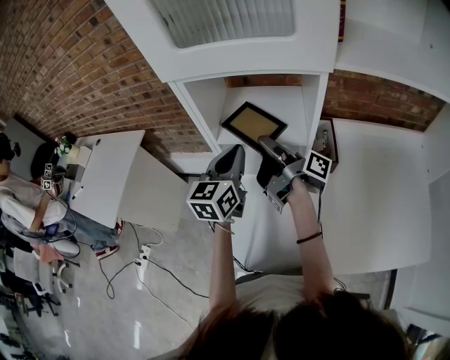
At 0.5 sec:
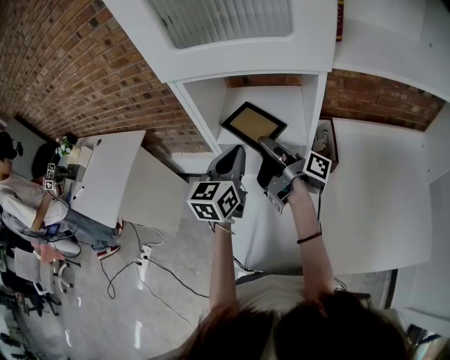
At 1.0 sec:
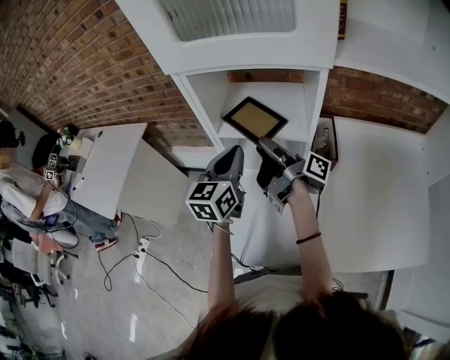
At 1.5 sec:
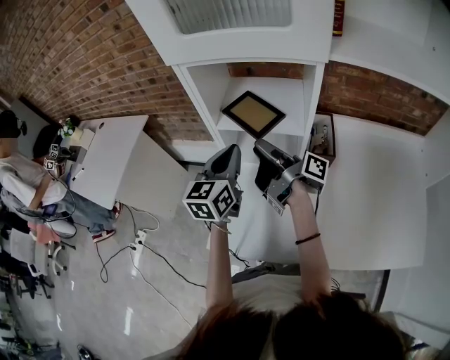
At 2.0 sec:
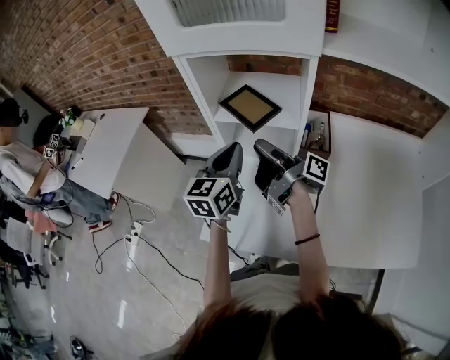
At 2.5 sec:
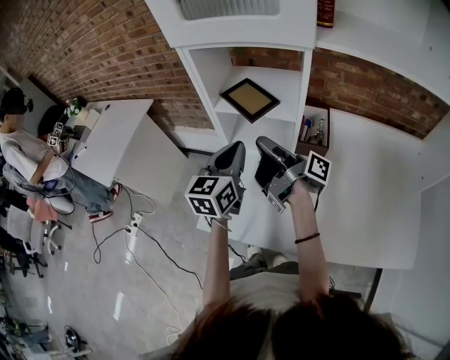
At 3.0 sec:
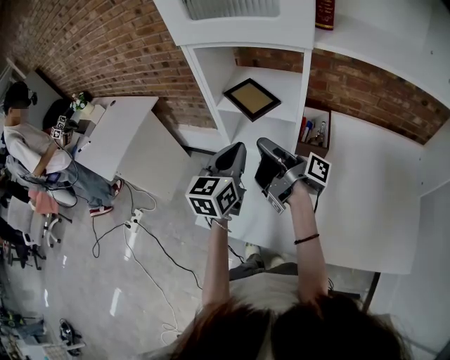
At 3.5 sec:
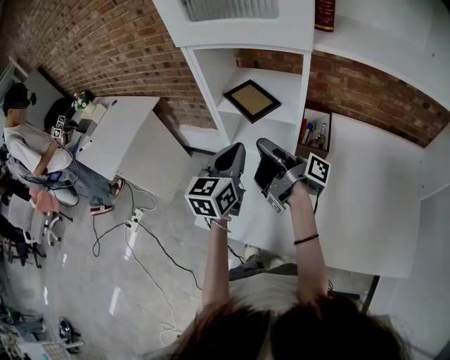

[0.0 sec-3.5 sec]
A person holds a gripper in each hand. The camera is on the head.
0.0 sec to 2.0 sec: The left gripper moves approximately 5 cm.

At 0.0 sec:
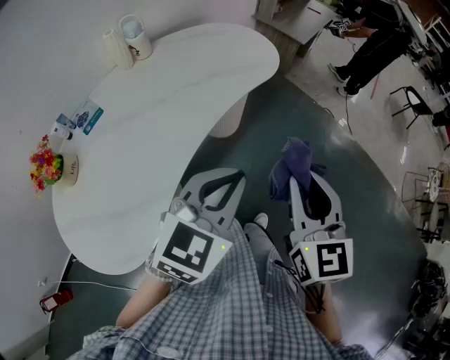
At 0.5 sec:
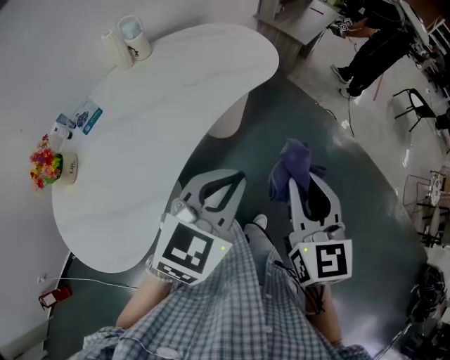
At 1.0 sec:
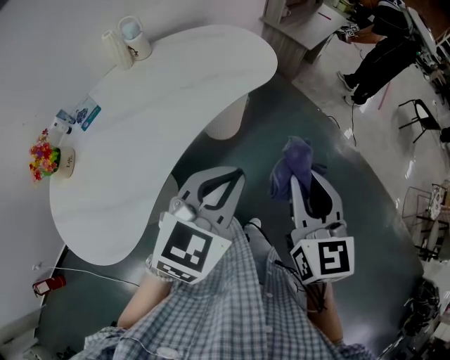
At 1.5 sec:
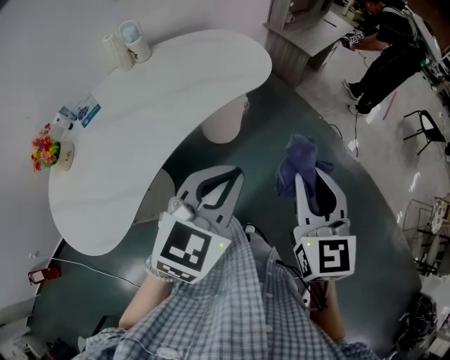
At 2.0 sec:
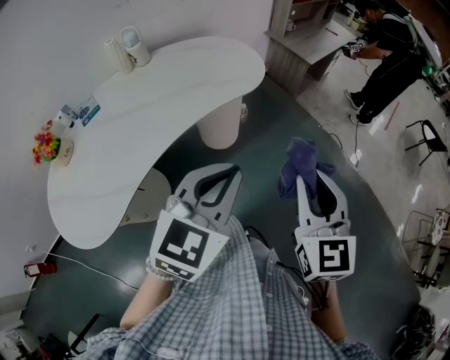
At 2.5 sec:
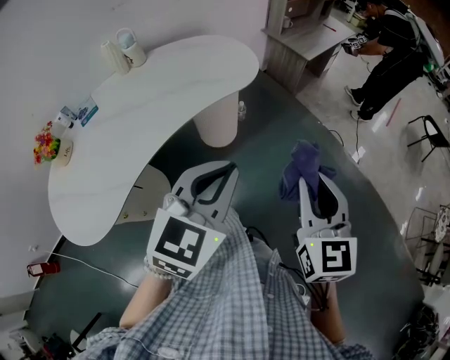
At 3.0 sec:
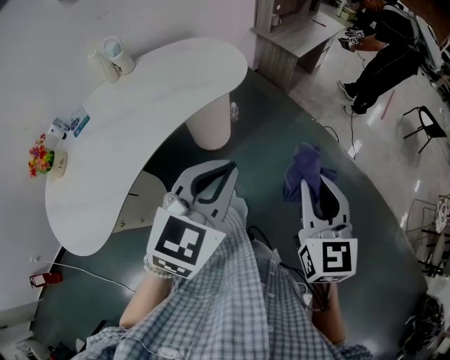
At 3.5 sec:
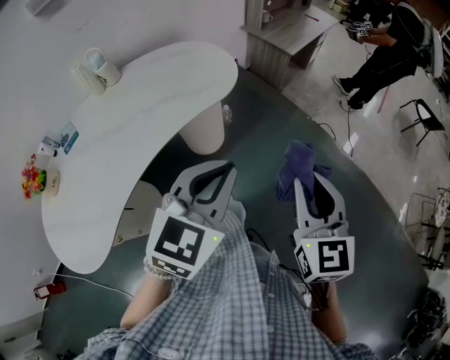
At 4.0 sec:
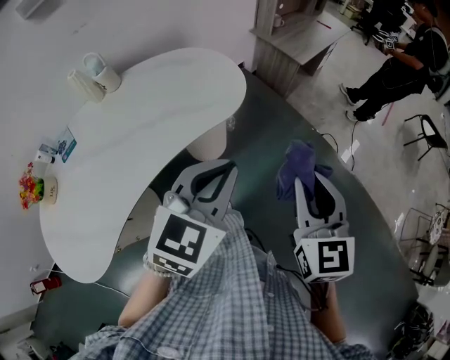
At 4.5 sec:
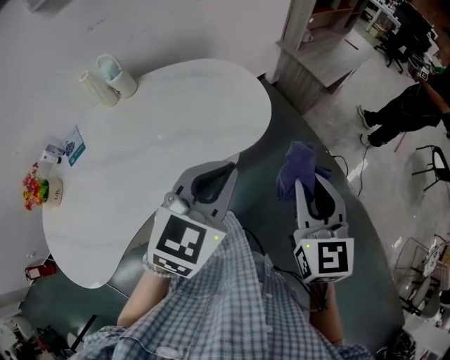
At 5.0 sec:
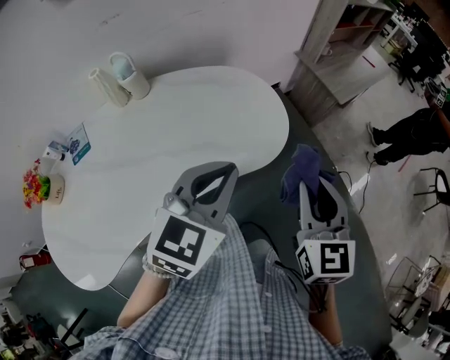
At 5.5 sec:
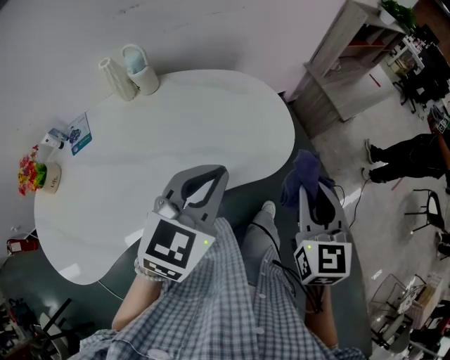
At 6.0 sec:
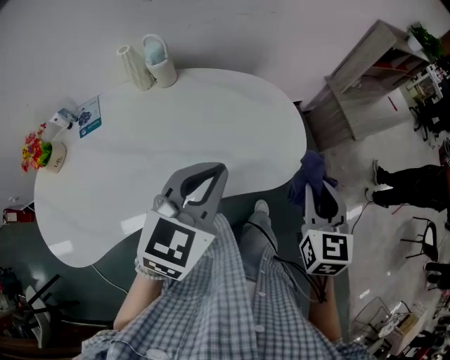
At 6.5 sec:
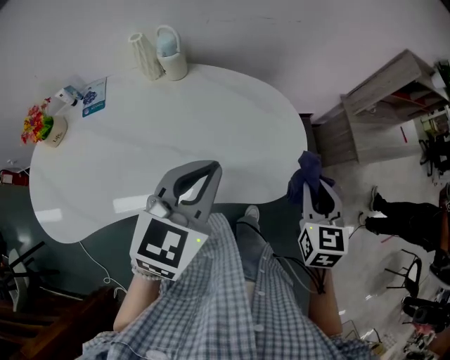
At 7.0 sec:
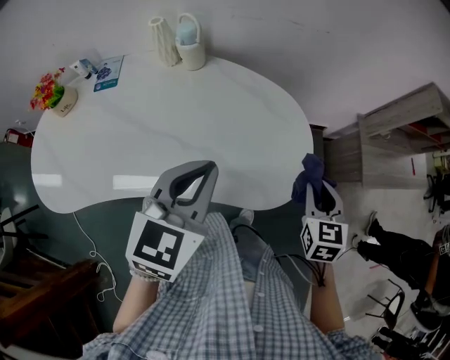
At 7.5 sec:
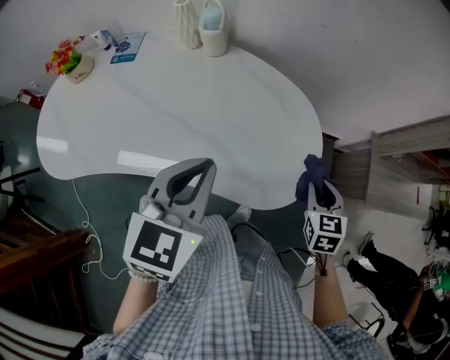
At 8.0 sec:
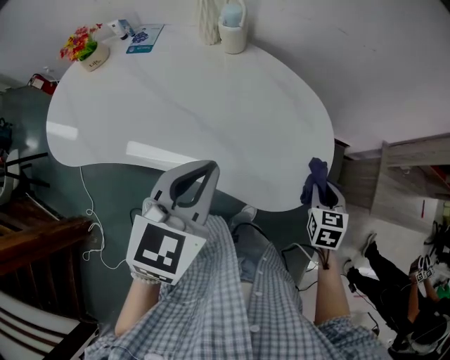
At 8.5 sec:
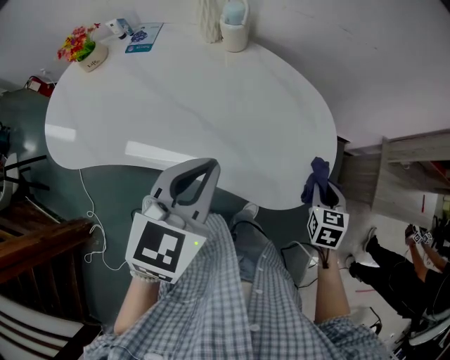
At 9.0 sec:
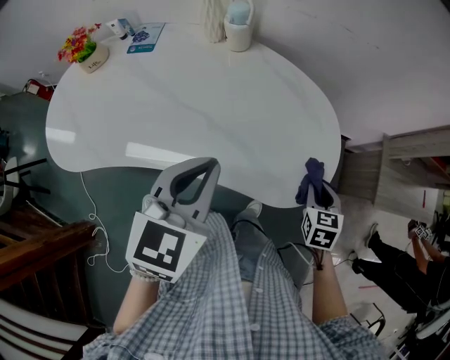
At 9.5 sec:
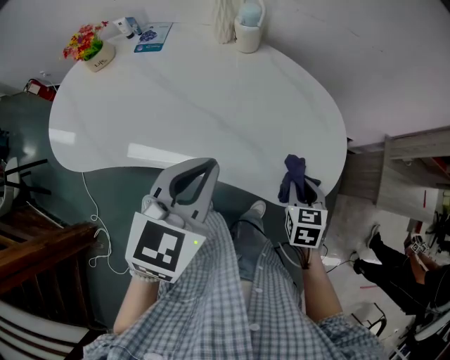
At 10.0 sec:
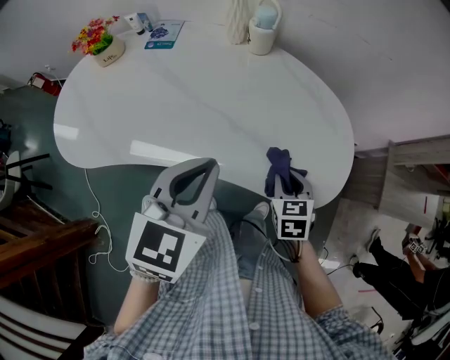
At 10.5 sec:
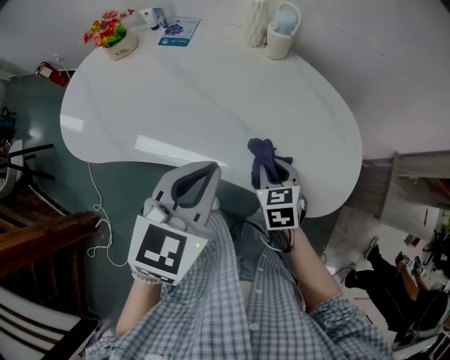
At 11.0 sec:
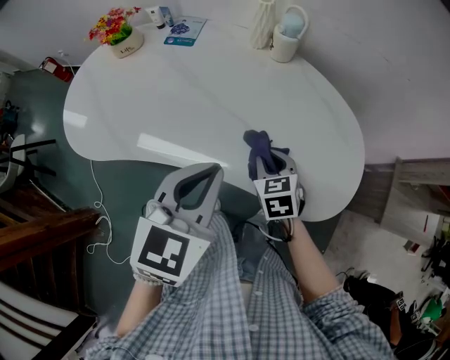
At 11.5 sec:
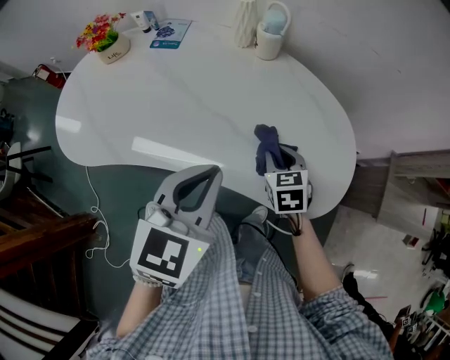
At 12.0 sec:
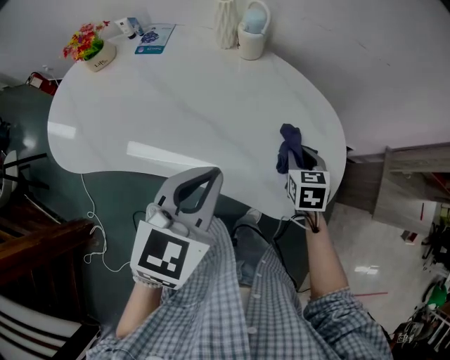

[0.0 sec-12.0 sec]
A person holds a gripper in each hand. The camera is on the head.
0.0 sec to 2.0 sec: The right gripper heads to the right and forward, covering some 20 cm. Meanwhile the left gripper heads to the right, covering about 15 cm.
2.0 sec to 4.0 sec: The grippers both shift forward by about 15 cm.
4.0 sec to 6.0 sec: The two grippers go roughly 25 cm forward and to the left. The left gripper changes its angle by some 30 degrees.
6.0 sec to 8.0 sec: The left gripper rotates about 40 degrees; the right gripper moves roughly 25 cm, and turns by some 40 degrees.
8.0 sec to 10.0 sec: The right gripper travels to the left by about 20 cm; the left gripper shifts about 10 cm to the left.
10.0 sec to 12.0 sec: The right gripper heads forward, covering about 10 cm, and travels to the left and back again, approximately 10 cm each way.

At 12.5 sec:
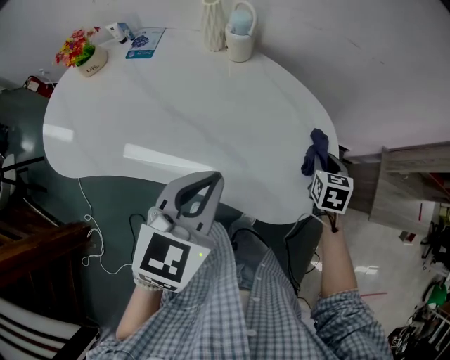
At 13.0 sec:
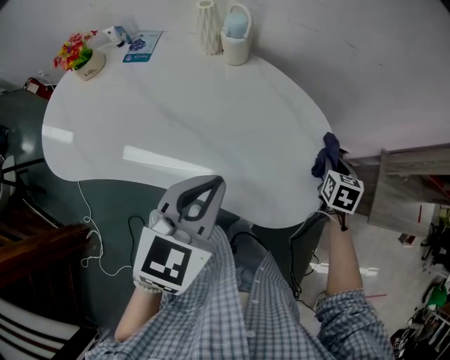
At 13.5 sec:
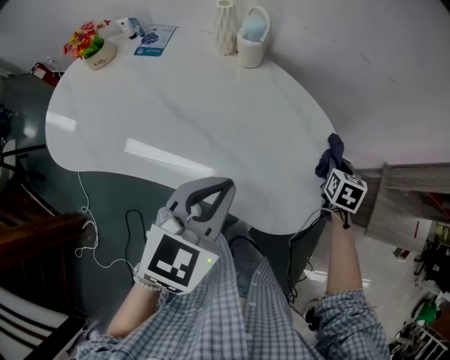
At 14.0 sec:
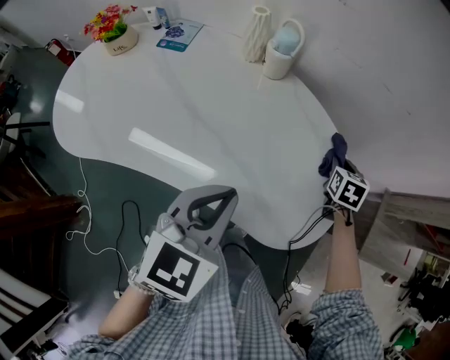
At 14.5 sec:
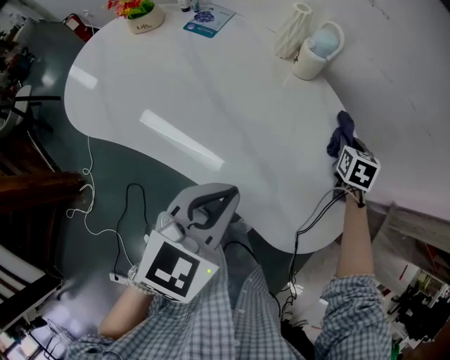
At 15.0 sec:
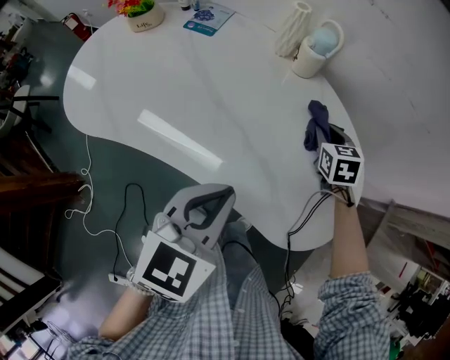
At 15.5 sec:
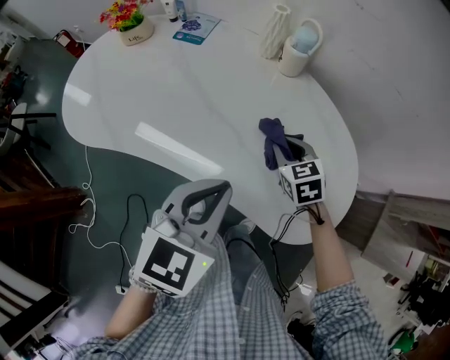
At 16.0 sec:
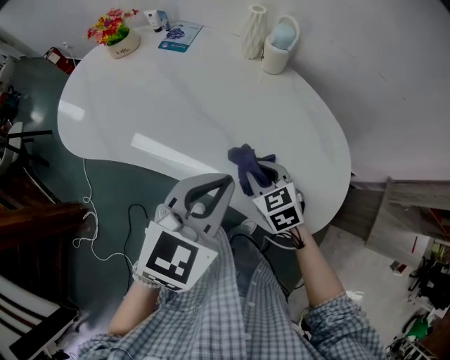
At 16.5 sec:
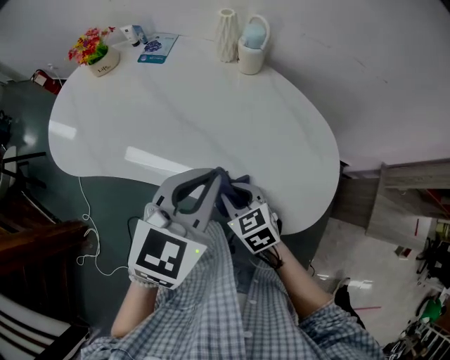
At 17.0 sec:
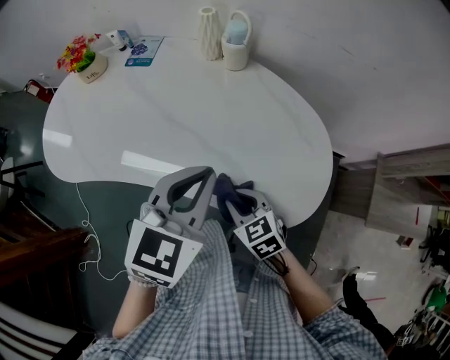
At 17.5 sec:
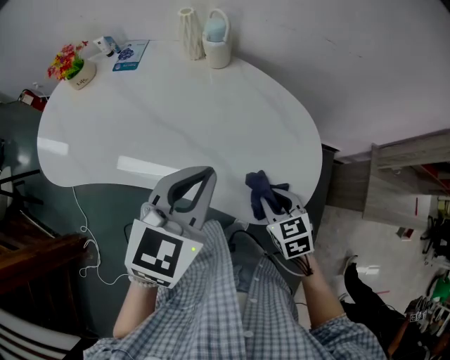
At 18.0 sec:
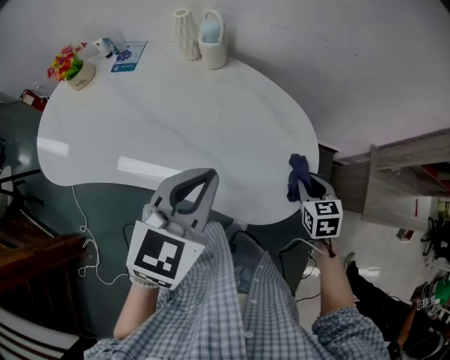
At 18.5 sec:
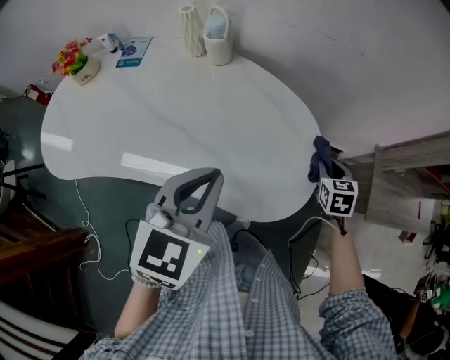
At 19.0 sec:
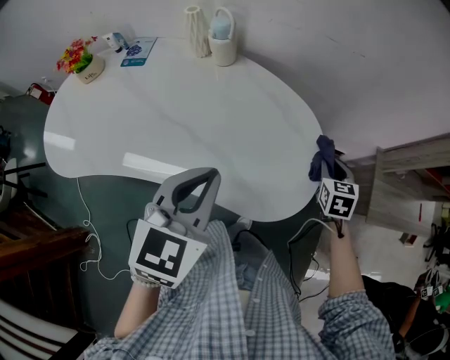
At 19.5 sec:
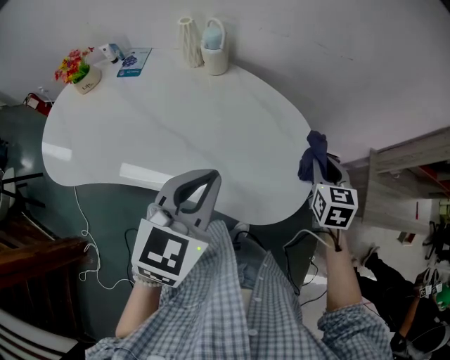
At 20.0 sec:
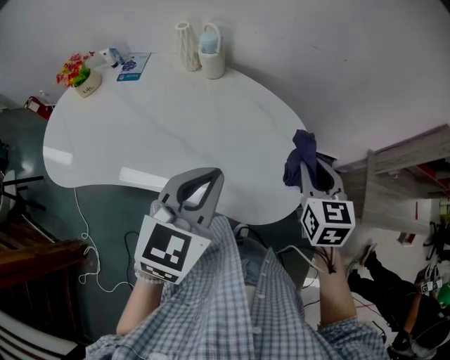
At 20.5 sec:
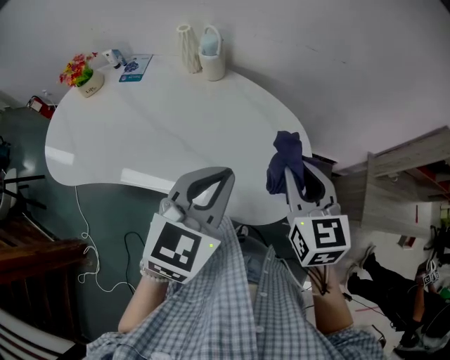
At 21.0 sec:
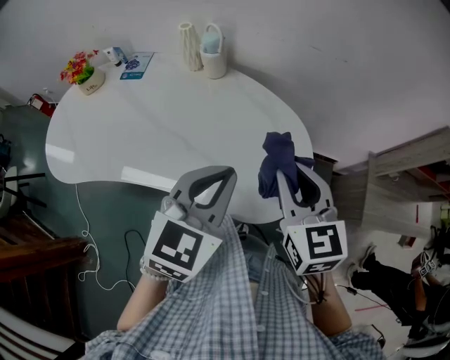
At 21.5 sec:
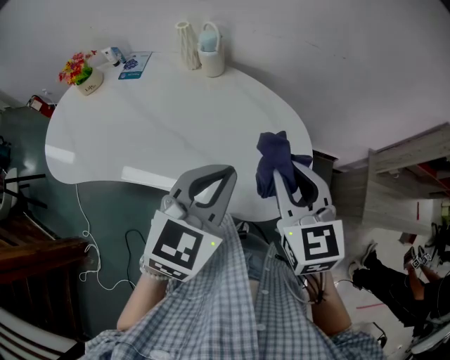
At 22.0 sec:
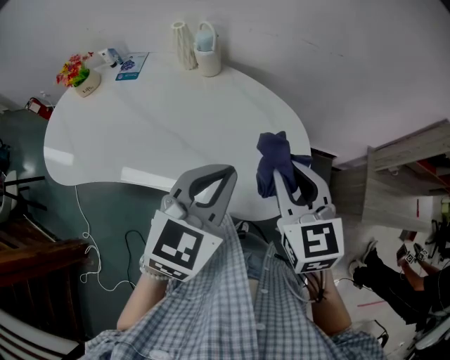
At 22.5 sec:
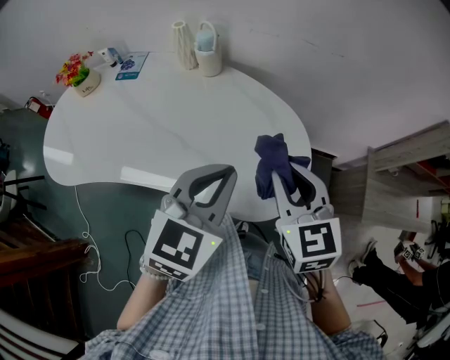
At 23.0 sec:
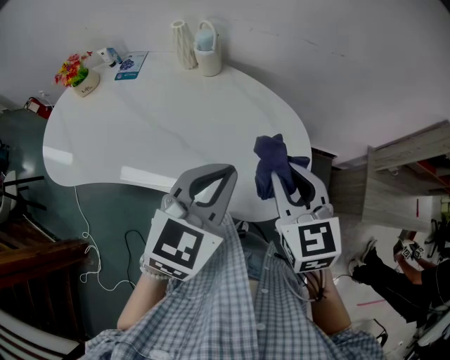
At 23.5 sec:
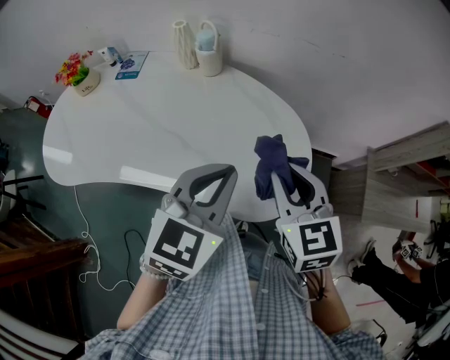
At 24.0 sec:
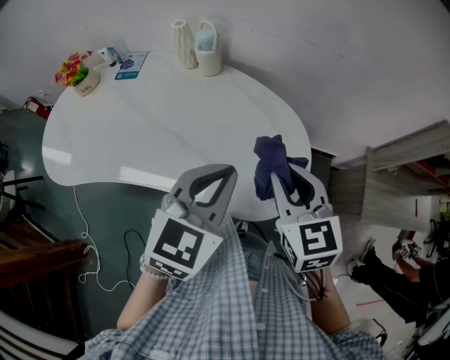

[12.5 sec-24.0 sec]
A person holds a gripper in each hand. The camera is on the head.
12.5 sec to 14.5 sec: The right gripper is displaced forward and to the left by approximately 20 cm.
14.5 sec to 16.5 sec: The right gripper moves backward and to the left, about 35 cm, and swivels some 40 degrees.
16.5 sec to 18.5 sec: The right gripper changes place by some 40 cm, and turns by approximately 40 degrees. Meanwhile the left gripper ends up approximately 10 cm from where it was.
18.5 sec to 20.0 sec: The right gripper moves upward and to the left, approximately 15 cm, and turns by roughly 20 degrees.
20.0 sec to 22.0 sec: The right gripper travels to the left, upward and backward by roughly 10 cm.
22.0 sec to 24.0 sec: The two grippers keep their place.
